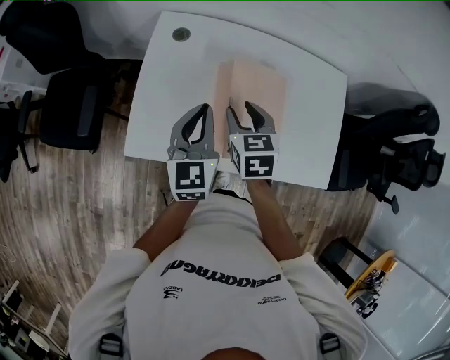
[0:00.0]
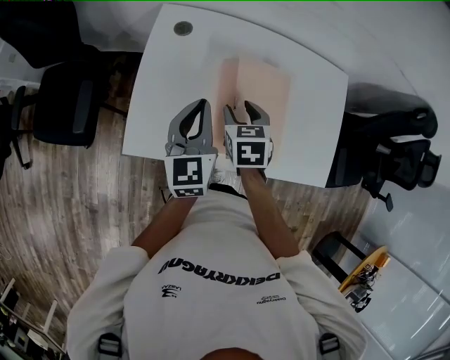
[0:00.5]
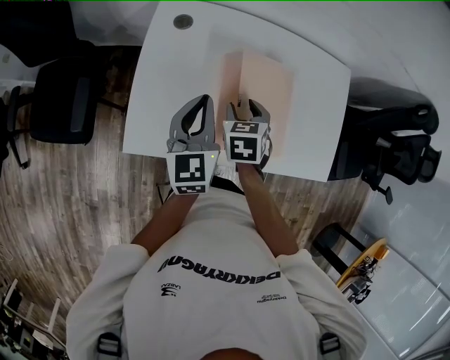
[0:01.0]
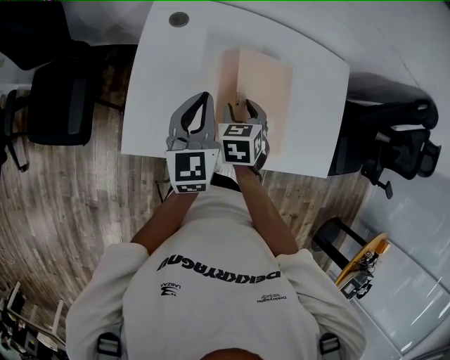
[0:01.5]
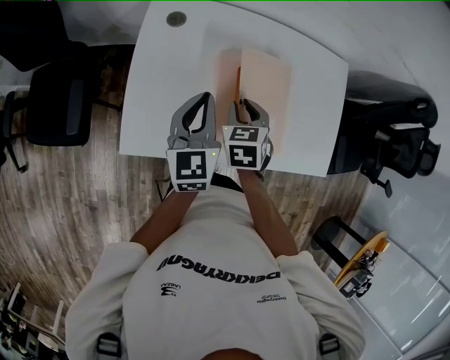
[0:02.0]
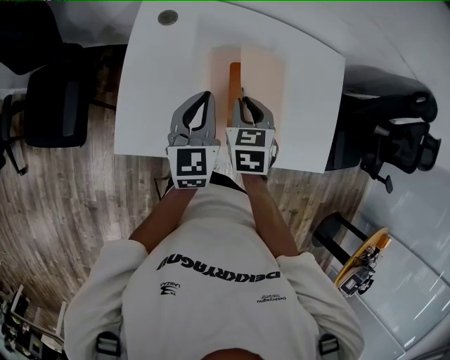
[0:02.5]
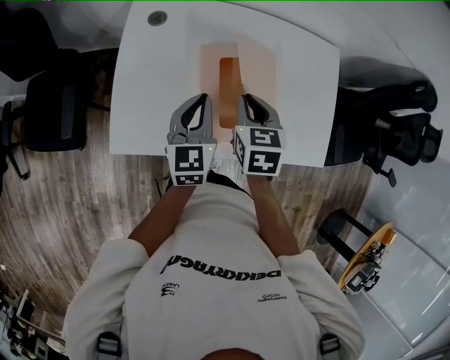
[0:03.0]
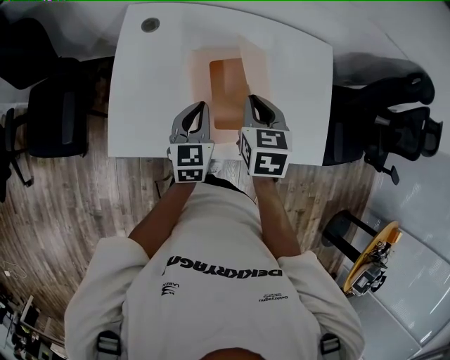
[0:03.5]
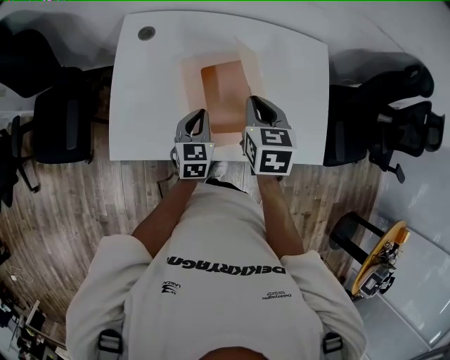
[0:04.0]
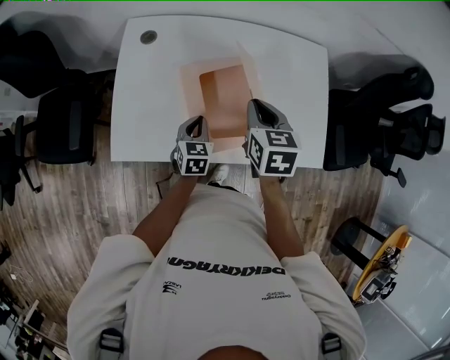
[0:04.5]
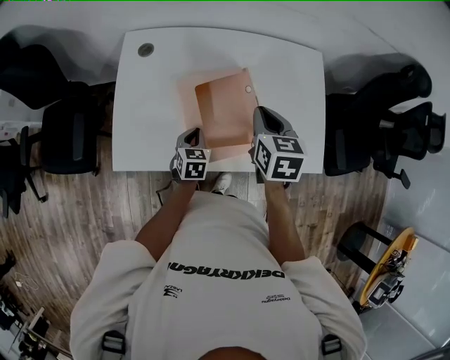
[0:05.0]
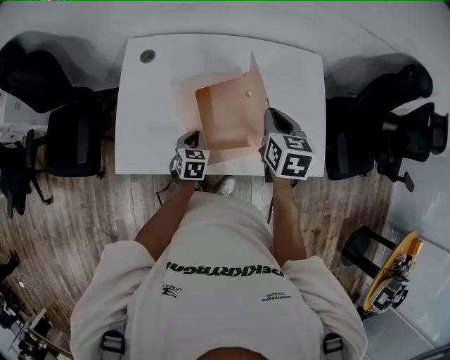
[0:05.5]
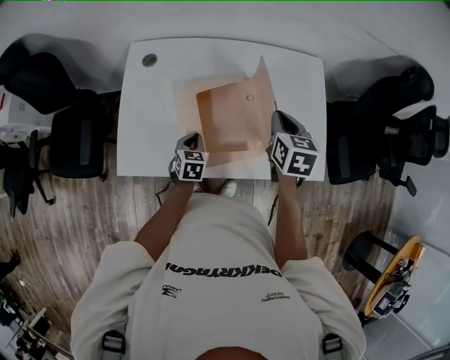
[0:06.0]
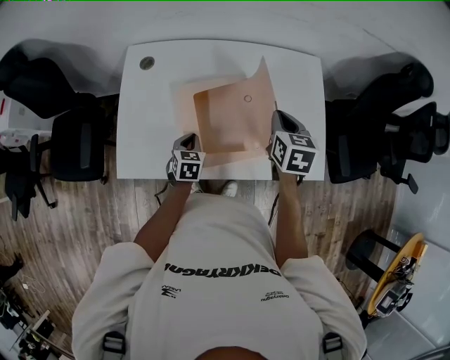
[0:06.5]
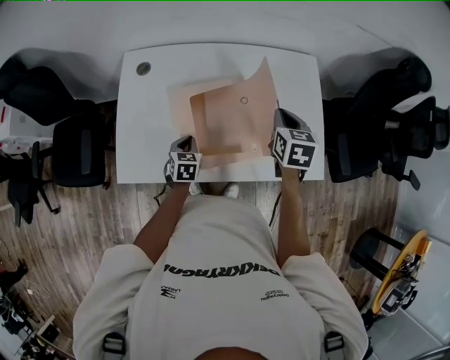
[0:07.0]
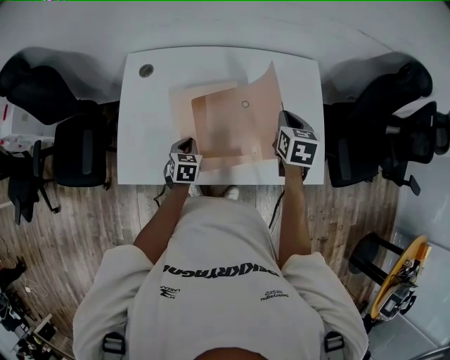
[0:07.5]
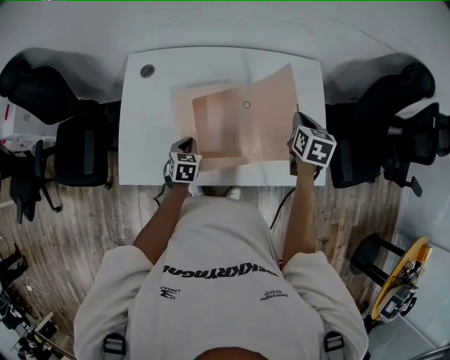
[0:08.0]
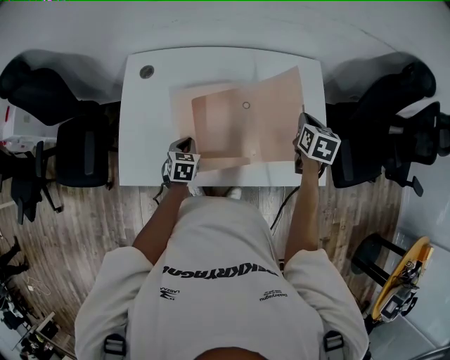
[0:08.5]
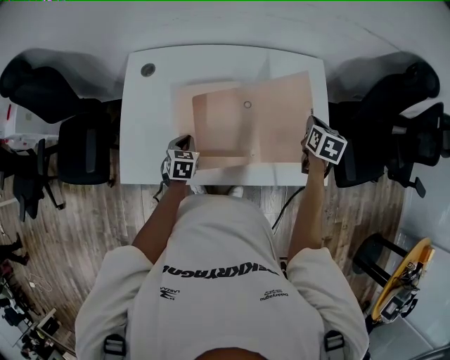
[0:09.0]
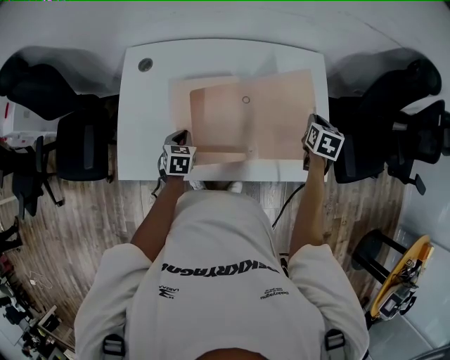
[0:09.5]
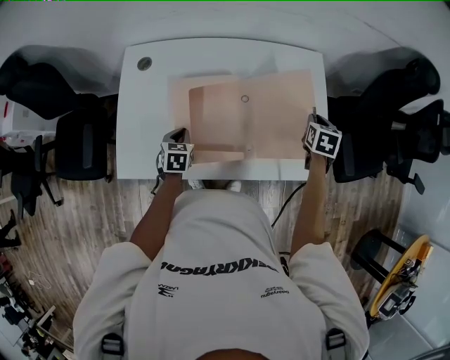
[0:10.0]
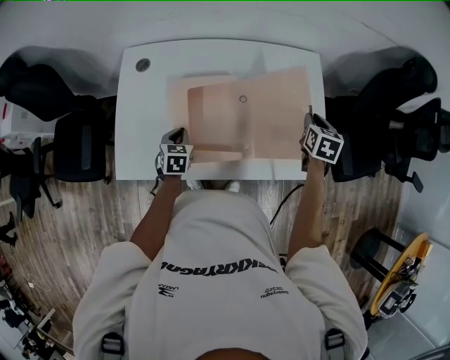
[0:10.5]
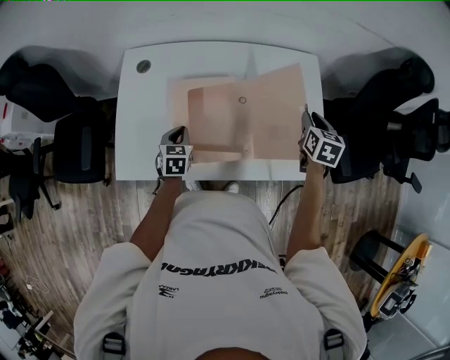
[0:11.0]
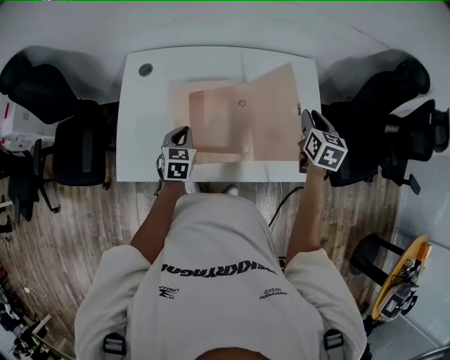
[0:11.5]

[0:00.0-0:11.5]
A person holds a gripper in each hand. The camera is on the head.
0:00.0 to 0:02.0: The right gripper moves downward, about 5 cm; the left gripper ends up approximately 5 cm from where it was.
0:02.0 to 0:04.0: The left gripper heads to the right and downward, covering some 15 cm. The right gripper goes approximately 15 cm to the right and upward.
0:04.0 to 0:06.0: The left gripper travels downward by some 5 cm. The right gripper is displaced to the right by about 10 cm.
0:06.0 to 0:07.5: The right gripper shifts about 5 cm to the right.
0:07.5 to 0:09.5: The right gripper travels to the right and downward by roughly 15 cm.
0:09.5 to 0:11.5: Both grippers move upward, about 10 cm.

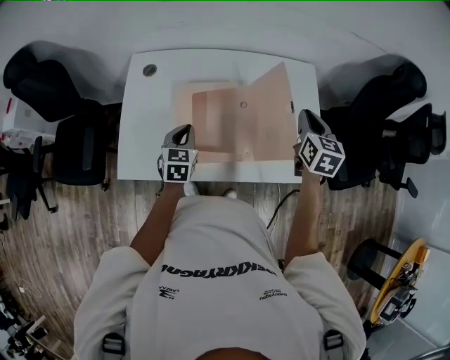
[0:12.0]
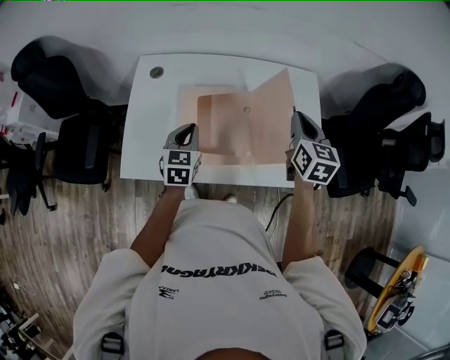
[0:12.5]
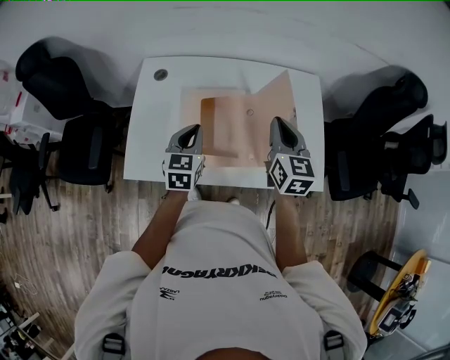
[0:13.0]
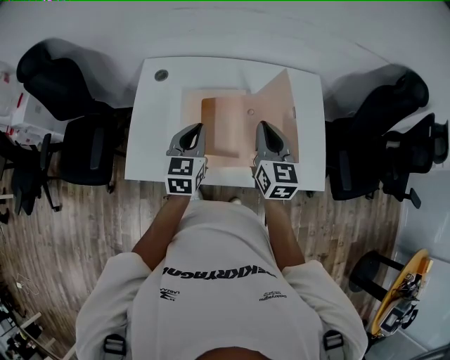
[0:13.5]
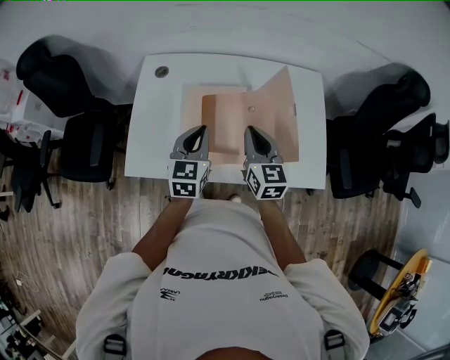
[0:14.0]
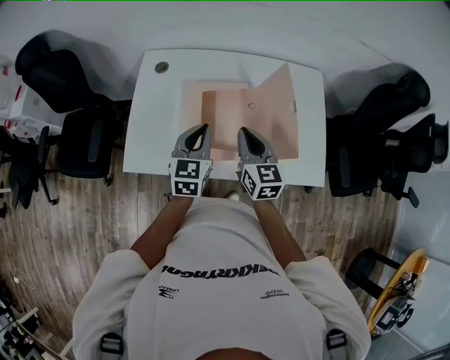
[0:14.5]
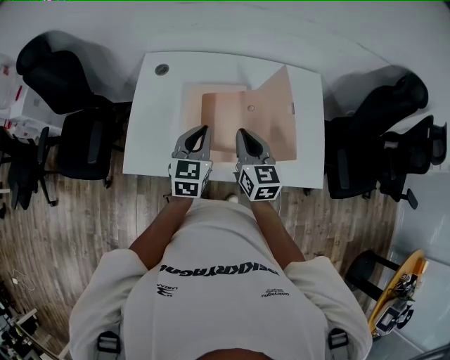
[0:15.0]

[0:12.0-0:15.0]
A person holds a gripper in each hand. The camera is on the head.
0:12.0 to 0:13.5: The right gripper goes approximately 15 cm to the left. The left gripper travels upward by approximately 10 cm.
0:13.5 to 0:15.0: The right gripper heads to the left, covering roughly 5 cm.

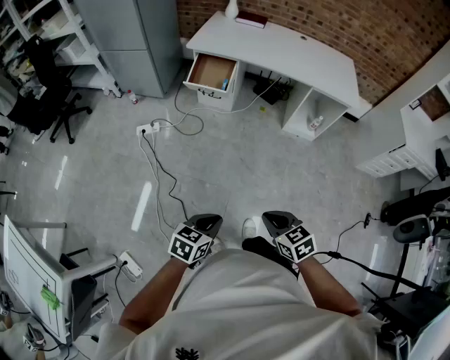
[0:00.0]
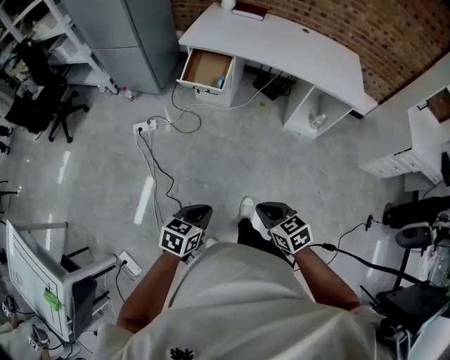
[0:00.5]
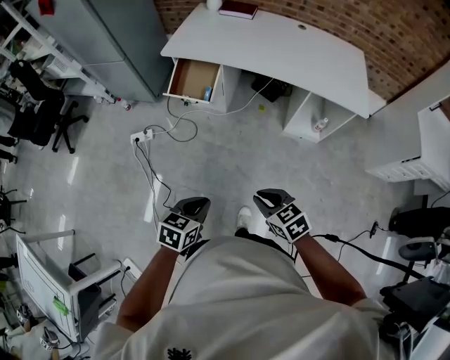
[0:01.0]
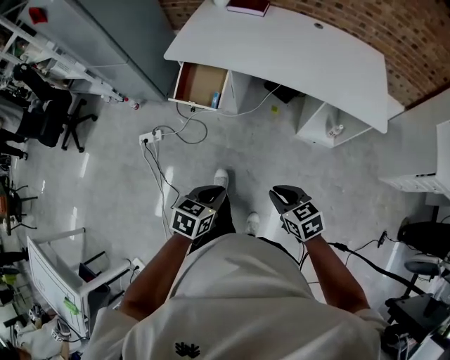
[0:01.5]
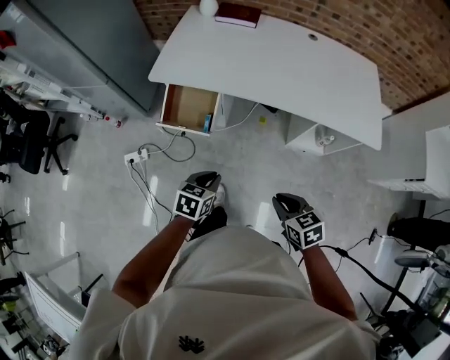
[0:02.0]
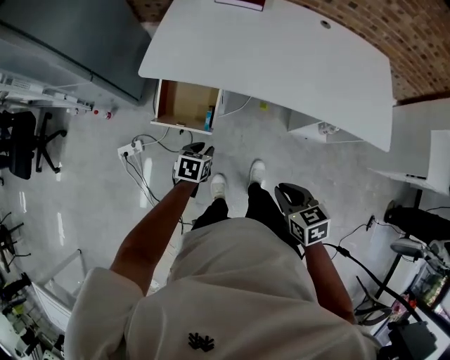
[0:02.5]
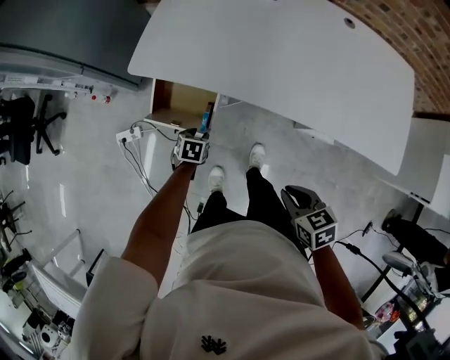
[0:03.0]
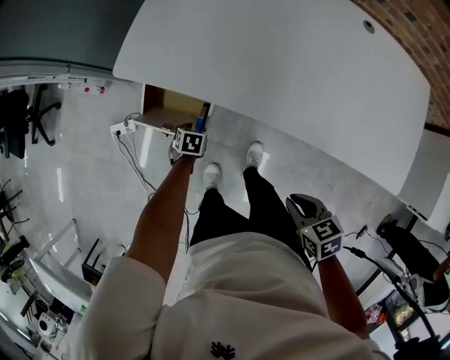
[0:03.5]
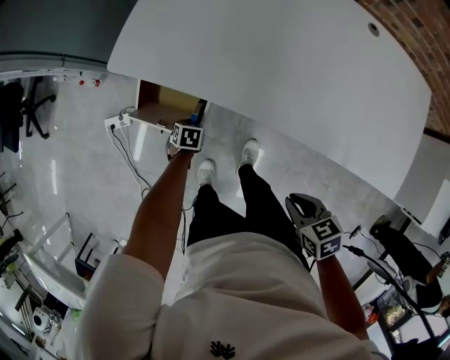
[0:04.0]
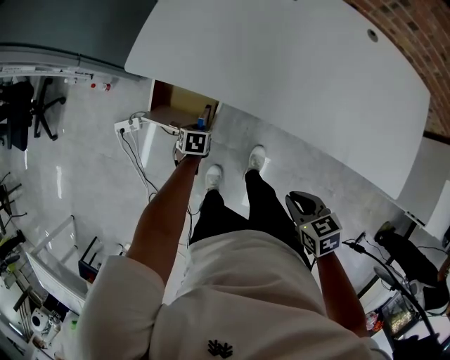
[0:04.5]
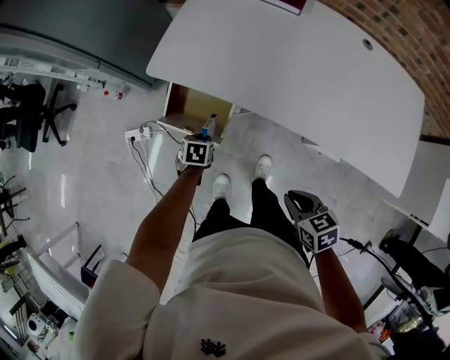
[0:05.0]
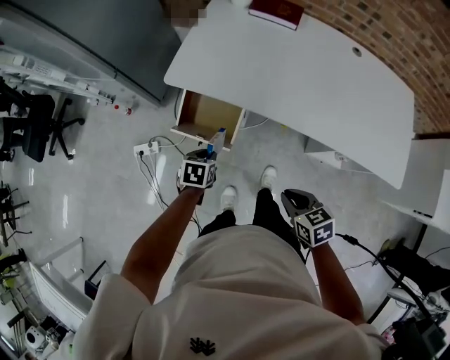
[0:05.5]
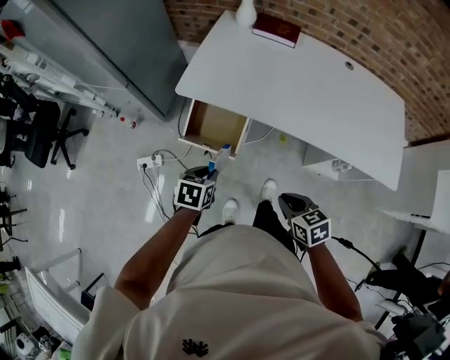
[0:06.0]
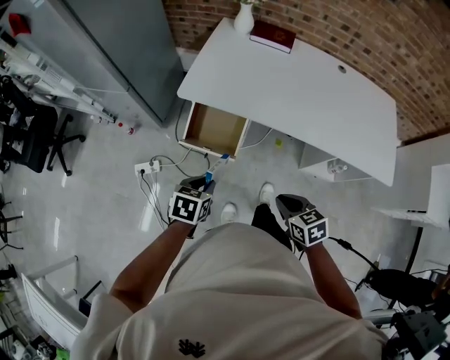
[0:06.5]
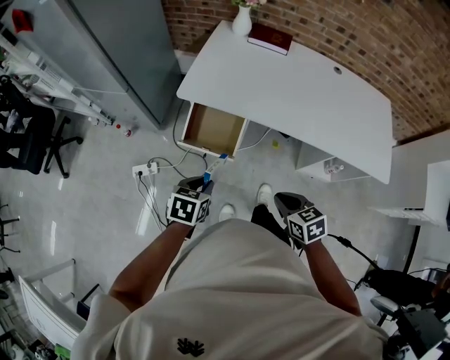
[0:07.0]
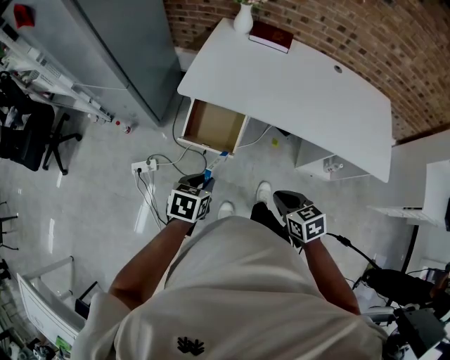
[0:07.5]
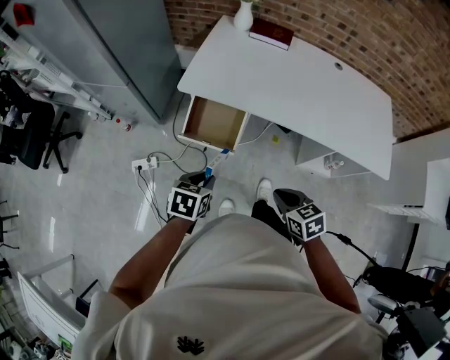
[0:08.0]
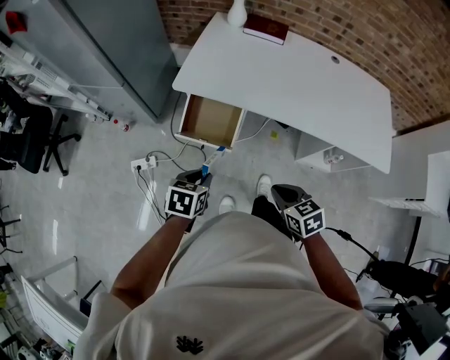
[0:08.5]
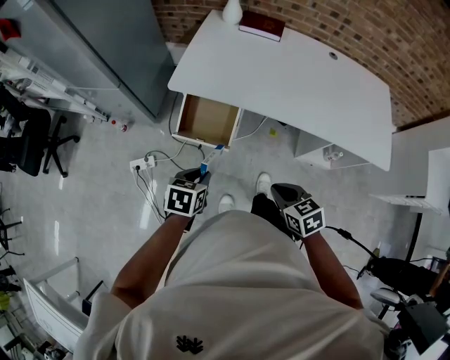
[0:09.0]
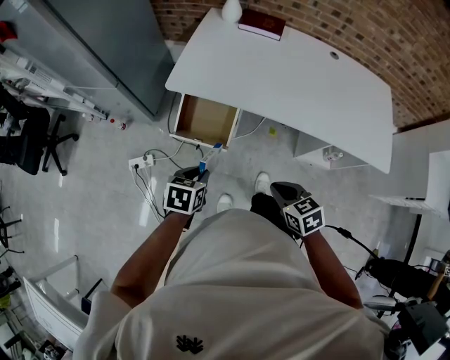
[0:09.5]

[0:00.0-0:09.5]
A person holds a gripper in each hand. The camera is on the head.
0:00.0 to 0:02.0: The pair of grippers is taken forward, about 70 cm.
0:02.0 to 0:04.0: The right gripper changes place by roughly 30 cm, and turns by some 20 degrees. Meanwhile the left gripper shifts by approximately 50 cm, and rotates about 30 degrees.
0:04.0 to 0:05.5: The left gripper is displaced upward by about 25 cm. The right gripper changes place by approximately 20 cm.
0:05.5 to 0:07.5: The left gripper heads backward, upward and to the left, covering approximately 20 cm; the right gripper heads to the left, backward and upward, covering roughly 15 cm.
0:07.5 to 0:09.5: The grippers stay close to where they were, moving slightly.

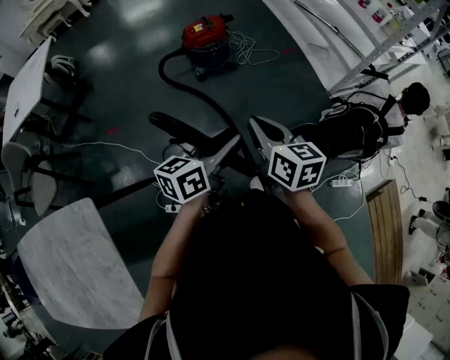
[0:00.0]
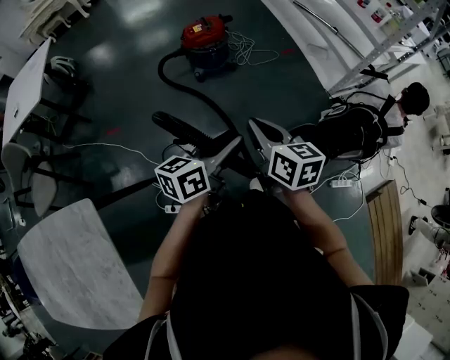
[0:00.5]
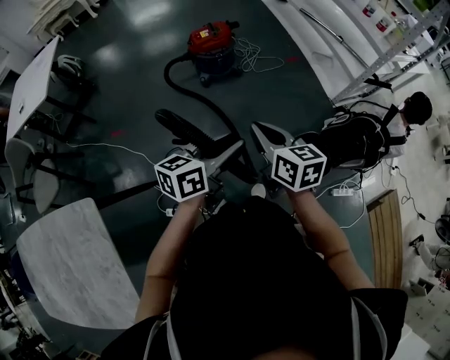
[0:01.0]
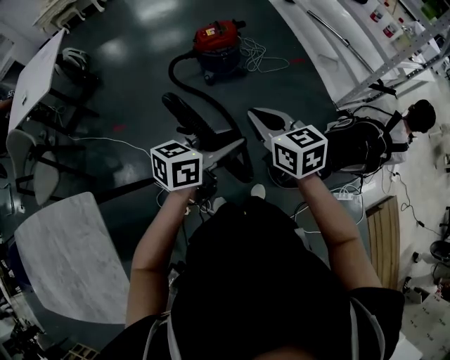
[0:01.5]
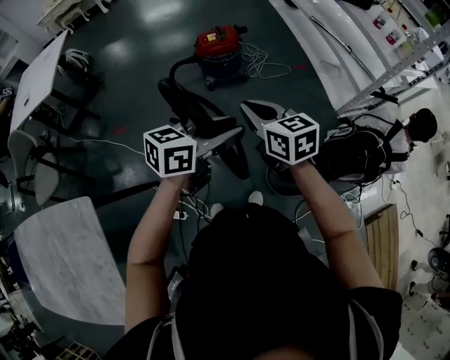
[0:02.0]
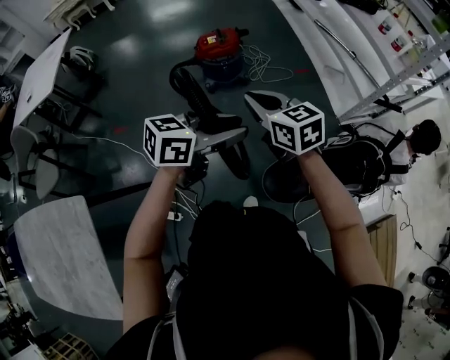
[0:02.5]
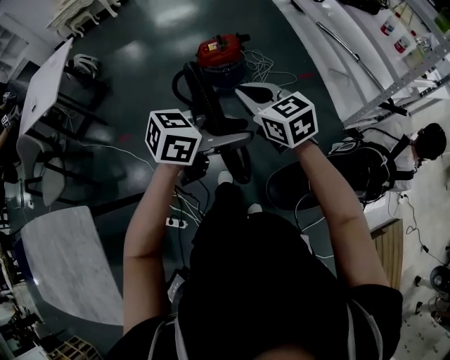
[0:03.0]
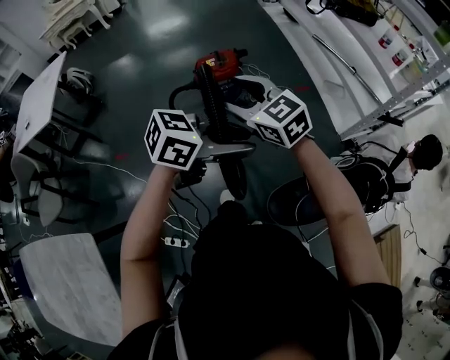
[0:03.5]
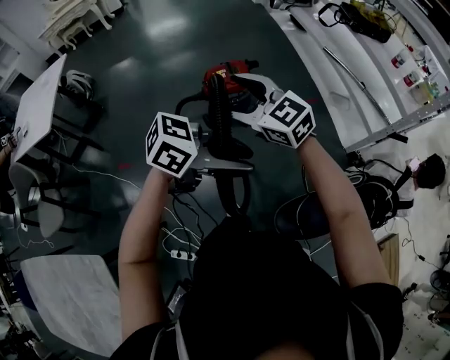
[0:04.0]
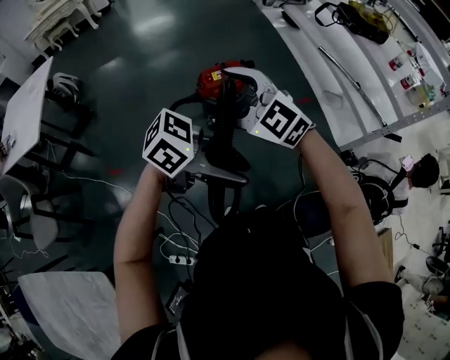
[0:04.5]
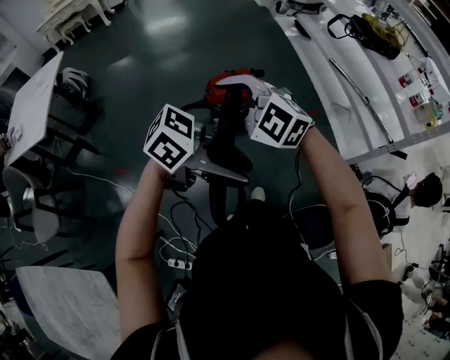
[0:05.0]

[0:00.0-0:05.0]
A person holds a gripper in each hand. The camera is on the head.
0:00.0 to 0:02.5: The left gripper is displaced forward and to the right by approximately 15 cm, and turns by roughly 20 degrees, while the right gripper shifts some 15 cm forward, and turns by approximately 30 degrees.
0:02.5 to 0:05.0: The right gripper ends up approximately 35 cm from where it was, rotates around the line of its fingers by approximately 50 degrees, counterclockwise from behind, and opens up; the left gripper ends up some 25 cm from where it was, and rotates approximately 40 degrees.
